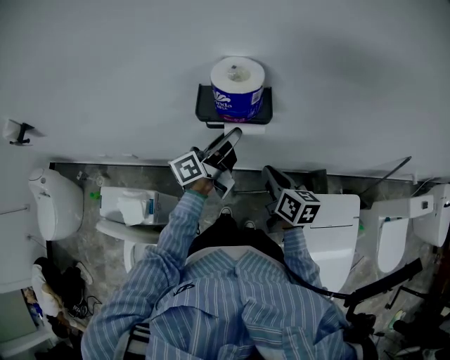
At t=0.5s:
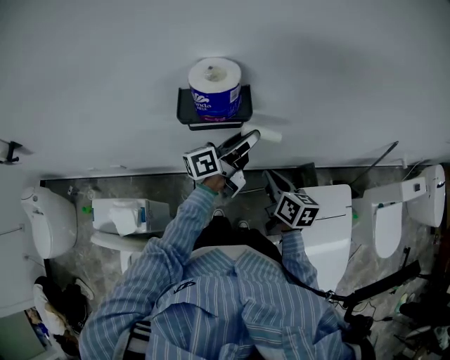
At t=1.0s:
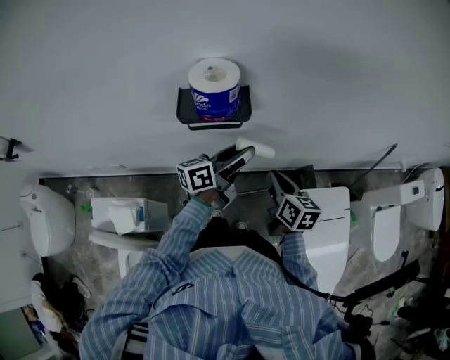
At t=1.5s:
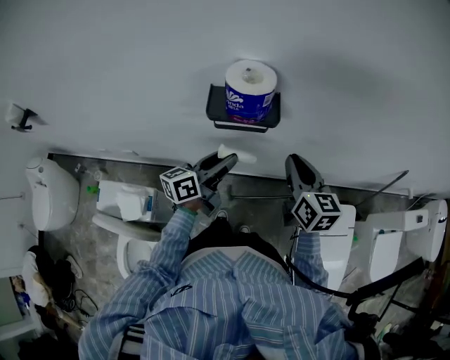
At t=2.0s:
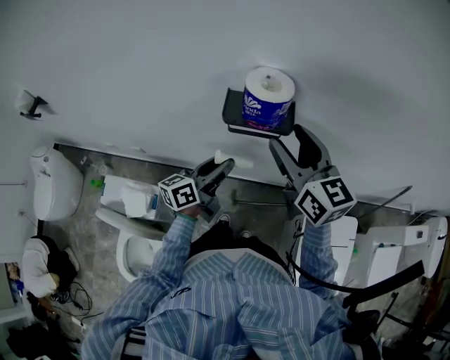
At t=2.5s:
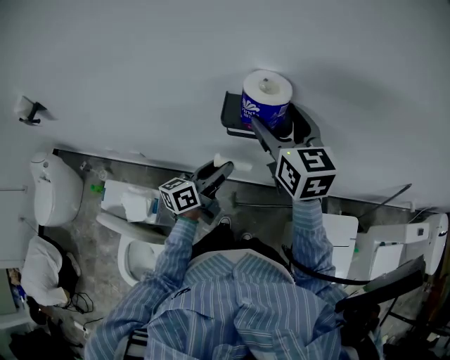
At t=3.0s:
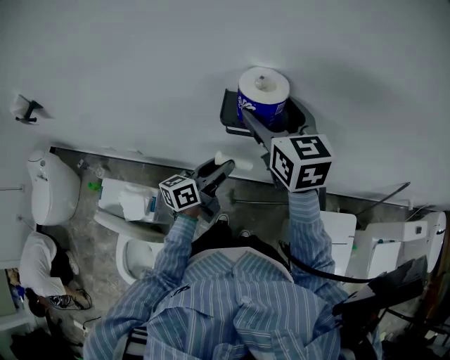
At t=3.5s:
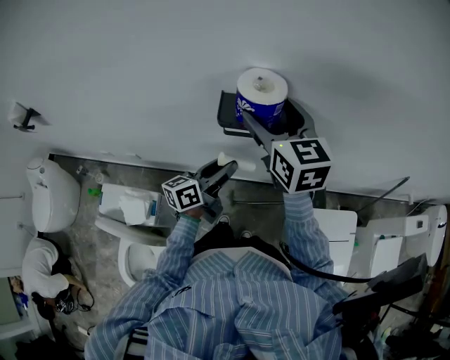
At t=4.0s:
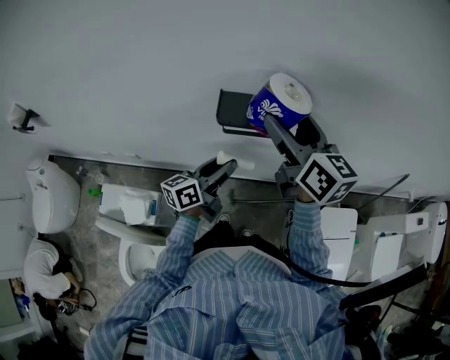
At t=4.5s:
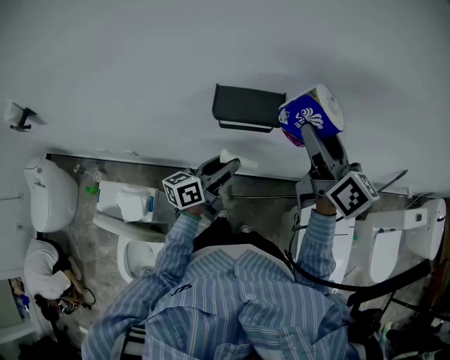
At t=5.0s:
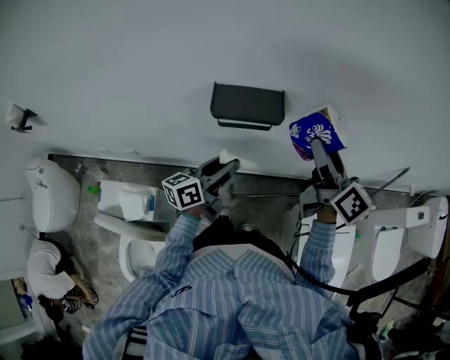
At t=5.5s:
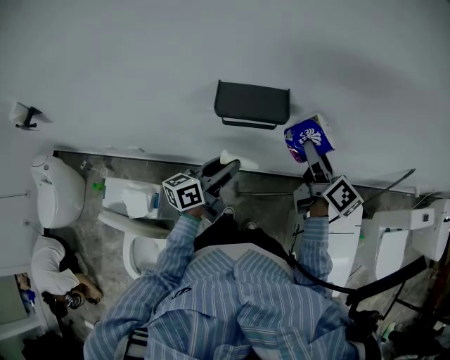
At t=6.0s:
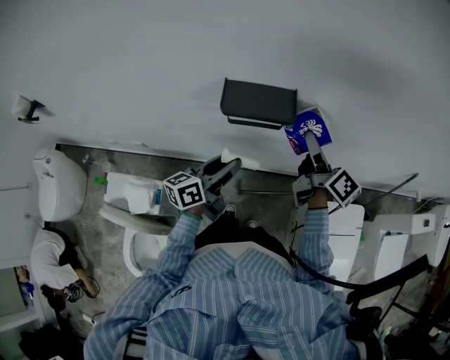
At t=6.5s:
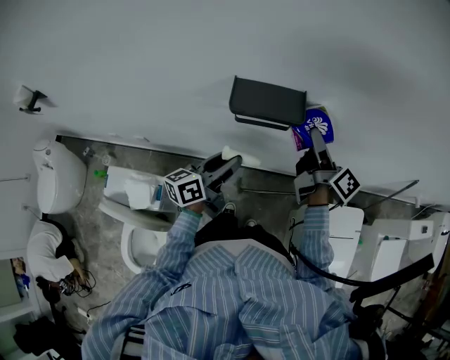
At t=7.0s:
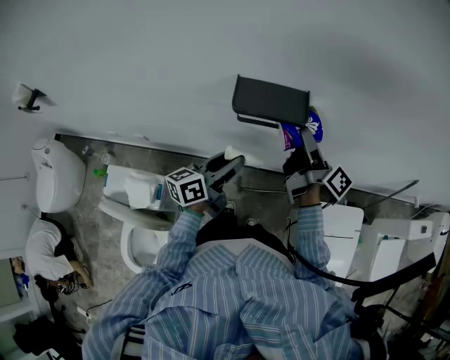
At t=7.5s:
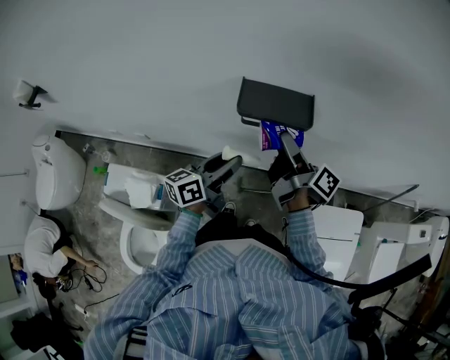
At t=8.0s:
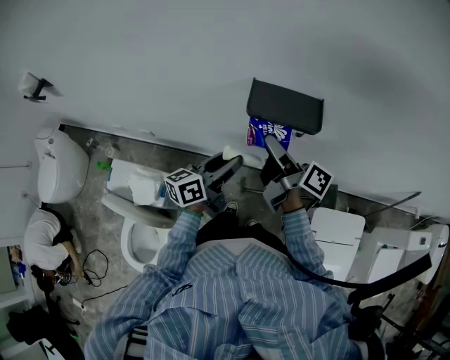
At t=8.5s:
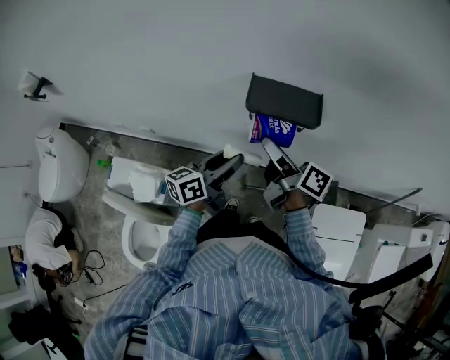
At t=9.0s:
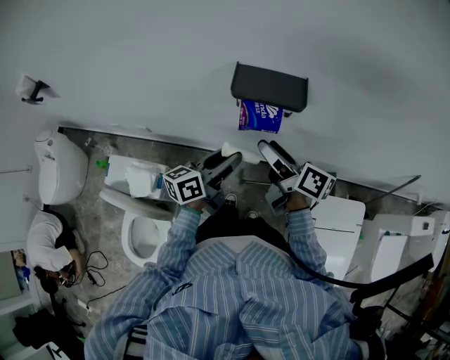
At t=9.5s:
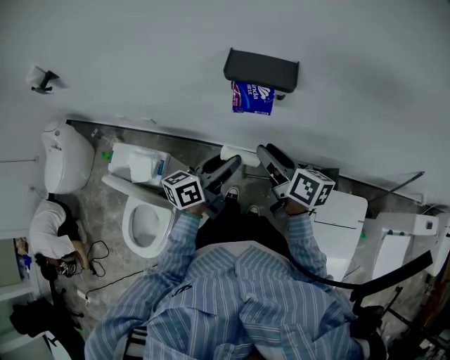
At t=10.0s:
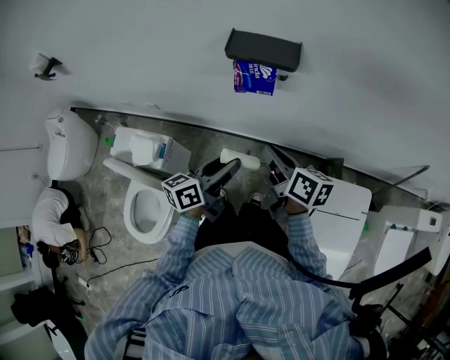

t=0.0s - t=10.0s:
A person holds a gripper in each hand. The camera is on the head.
t=0.0s - t=2.0s: The right gripper moves upward, some 20 cm, turns by approximately 40 degrees, and opens up, while the left gripper travels backward and to the left by some 10 cm, and changes its angle by roughly 20 degrees.
t=4.0s - t=6.0s: The right gripper is displaced downward and to the right by about 15 cm, and turns by about 40 degrees.
t=6.0s - t=8.0s: The right gripper moves to the left, about 15 cm, and swivels about 30 degrees.
t=8.0s - t=10.0s: Both grippers move backward, roughly 15 cm. The right gripper swivels approximately 30 degrees, and closes its fingers.

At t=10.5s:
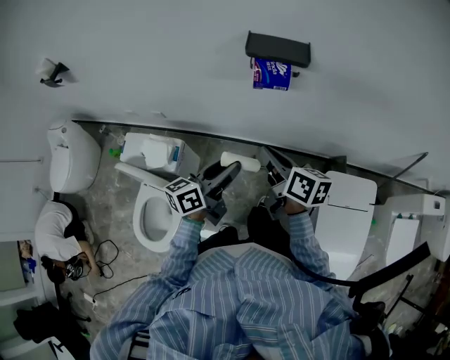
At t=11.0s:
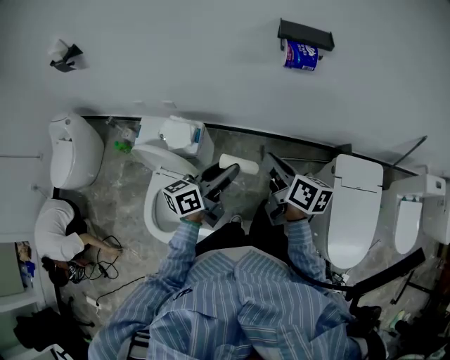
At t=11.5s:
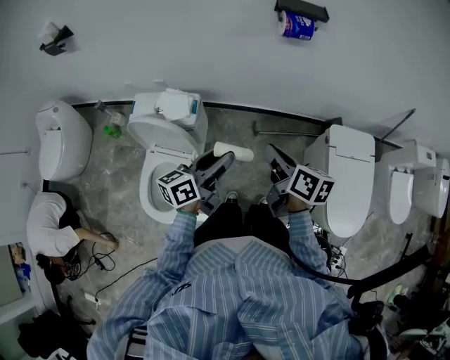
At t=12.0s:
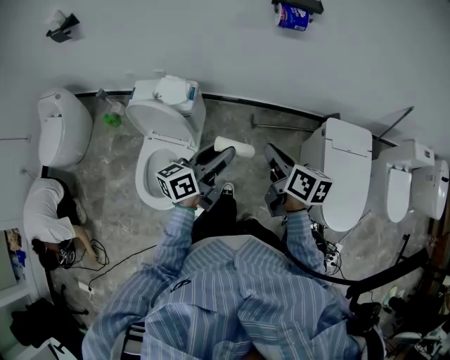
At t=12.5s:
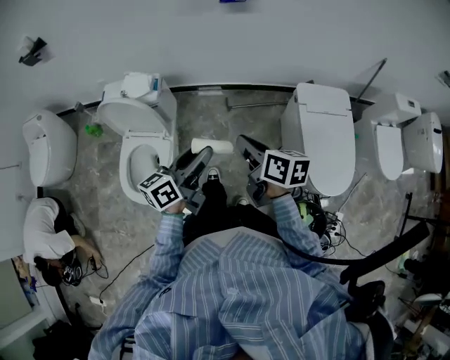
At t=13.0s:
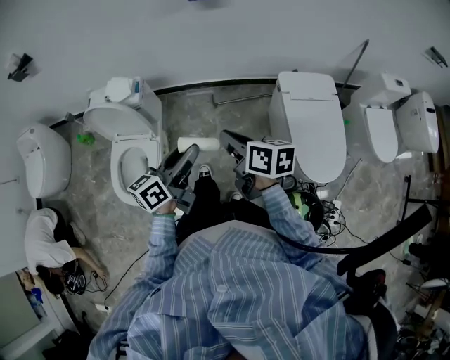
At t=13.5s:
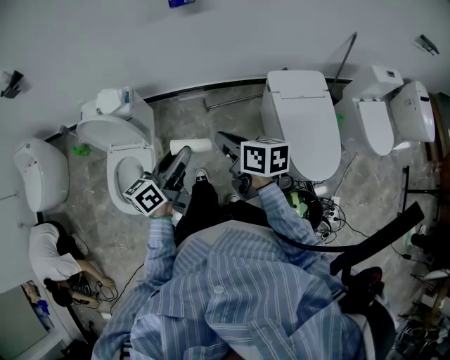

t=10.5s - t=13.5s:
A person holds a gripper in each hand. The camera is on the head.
t=10.5s - t=12.0s: The left gripper heads backward and to the left, covering about 25 cm. Meanwhile the right gripper is displaced backward by roughly 30 cm.
t=12.0s - t=13.5s: Both grippers move to the right and backward, some 15 cm.

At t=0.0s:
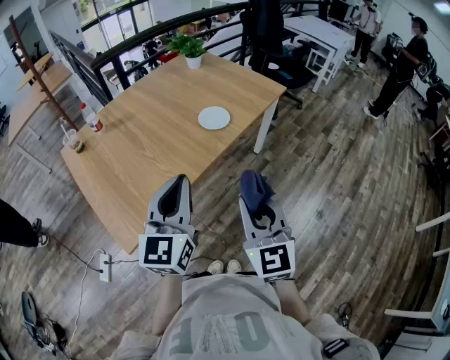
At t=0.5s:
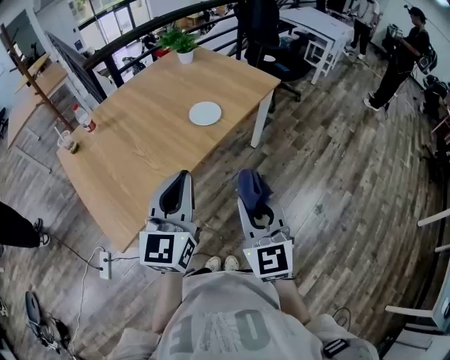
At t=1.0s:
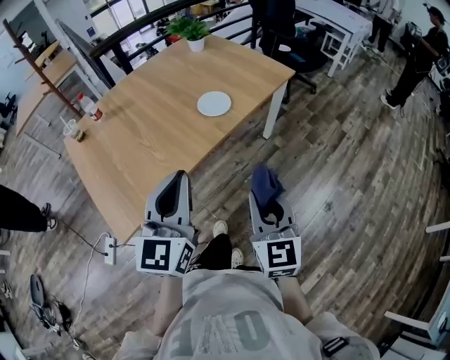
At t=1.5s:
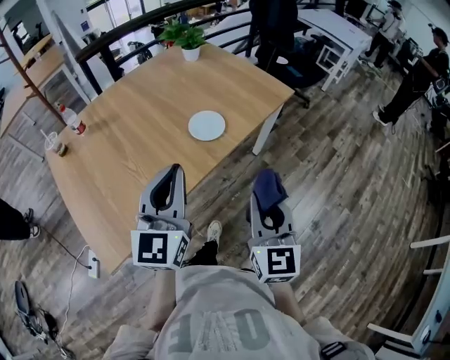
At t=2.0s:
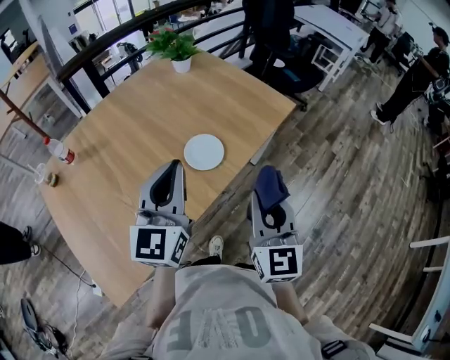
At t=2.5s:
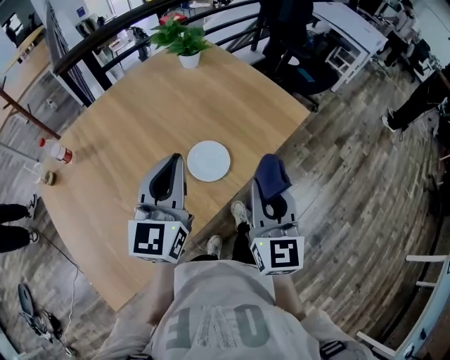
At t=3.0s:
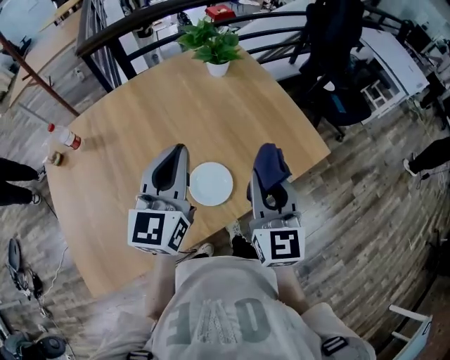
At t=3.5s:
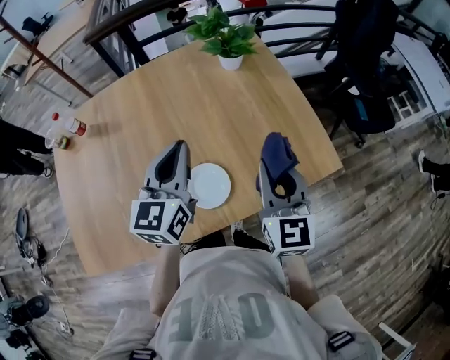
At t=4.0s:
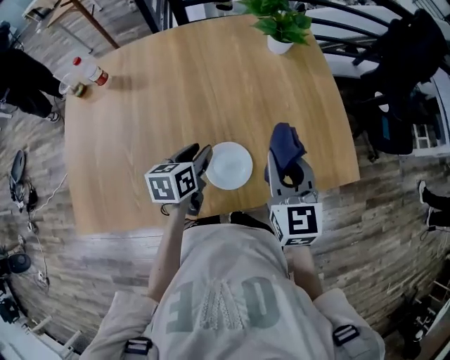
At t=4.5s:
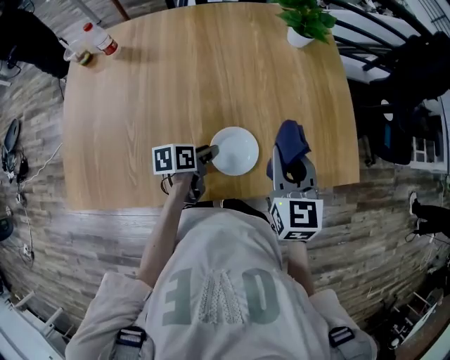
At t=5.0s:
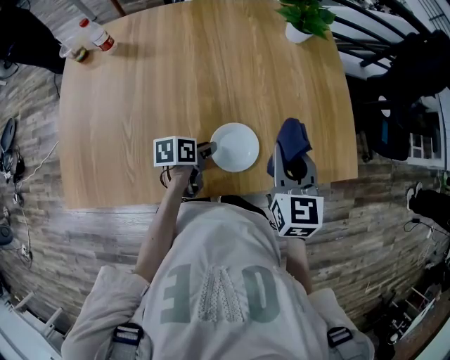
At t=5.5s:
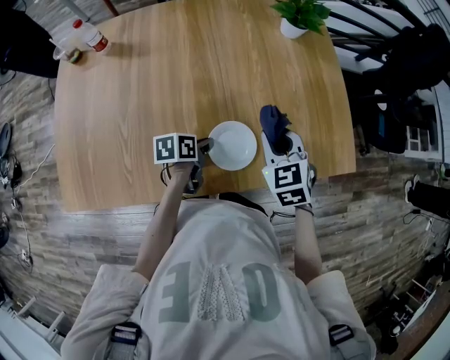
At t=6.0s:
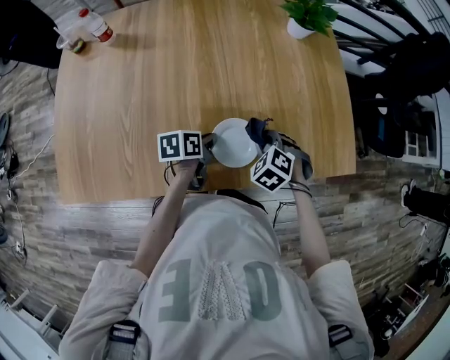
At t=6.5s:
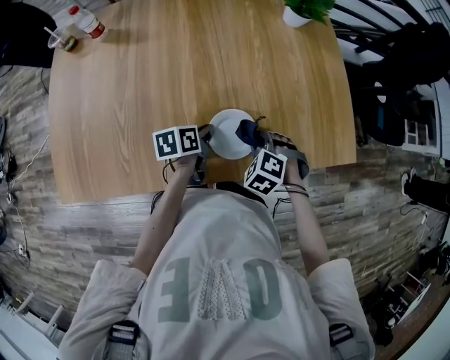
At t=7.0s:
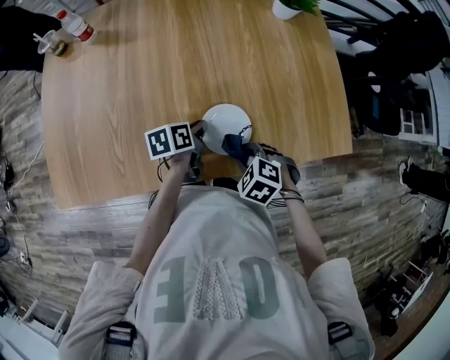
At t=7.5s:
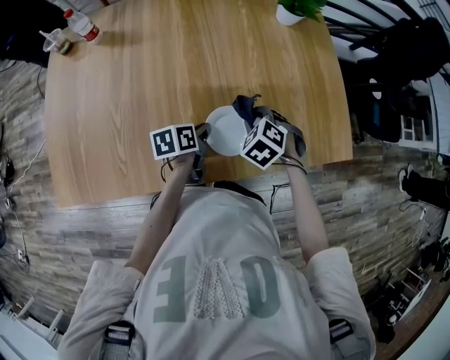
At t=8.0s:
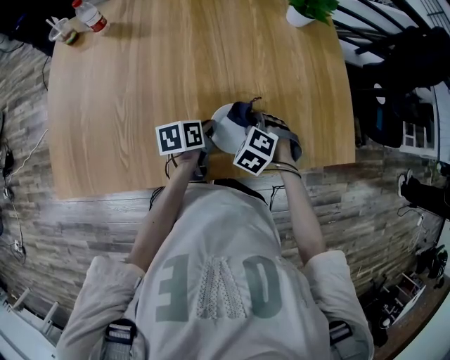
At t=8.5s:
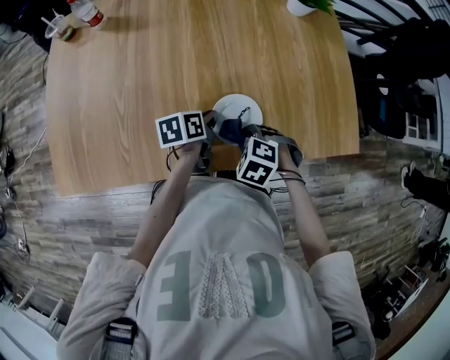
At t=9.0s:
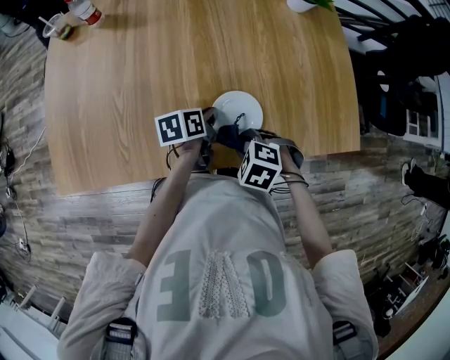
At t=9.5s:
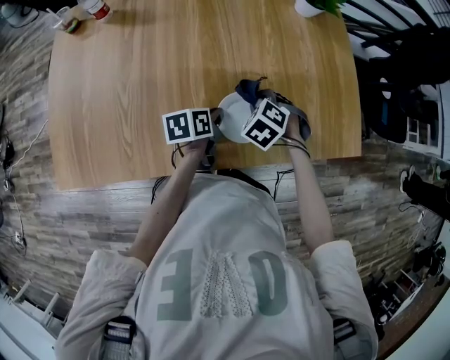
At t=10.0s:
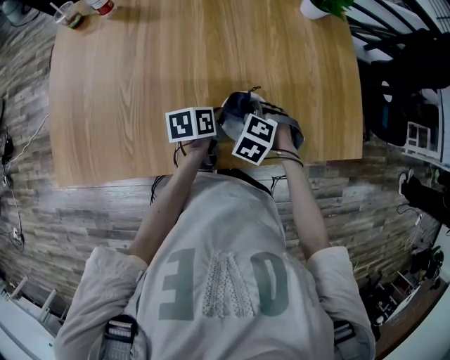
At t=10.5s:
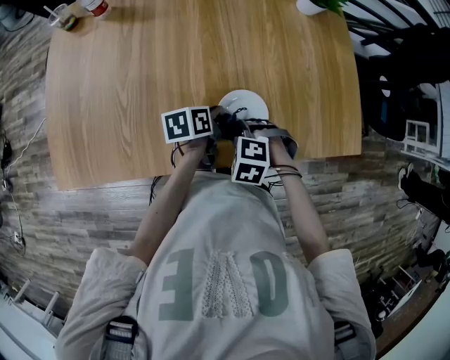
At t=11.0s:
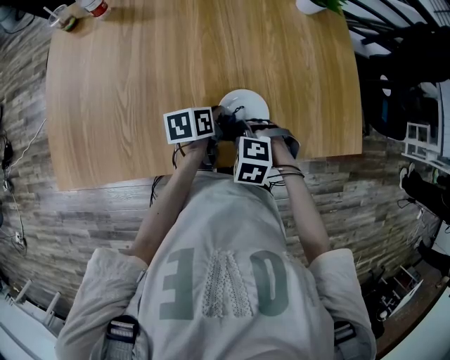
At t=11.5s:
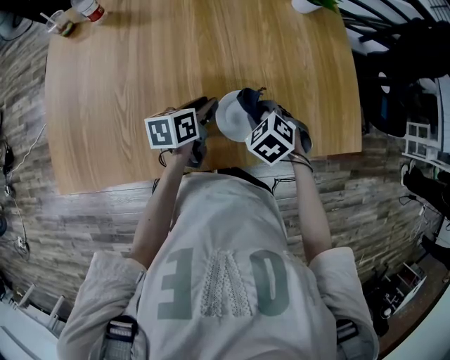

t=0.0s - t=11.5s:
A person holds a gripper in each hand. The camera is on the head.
t=0.0s - t=2.0s: The grippers both shift forward by approximately 30 cm.
t=2.0s - t=4.0s: The left gripper goes about 25 cm downward, points its fingers about 40 degrees further downward, and opens, while the right gripper changes place by about 35 cm, and changes its angle by some 40 degrees.
t=4.0s - t=6.0s: The left gripper moves downward, roughly 10 cm, rotates about 20 degrees, and closes its fingers, while the right gripper travels downward by some 20 cm, and angles its fingers downward, by approximately 50 degrees.
t=6.0s - t=7.5s: The right gripper goes backward and returns, roughly 10 cm each way.
t=9.5s - t=11.5s: The left gripper shifts by roughly 5 cm, and opens up.

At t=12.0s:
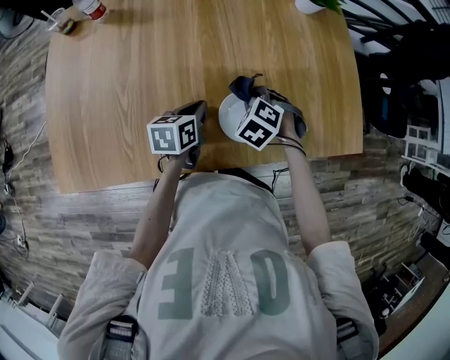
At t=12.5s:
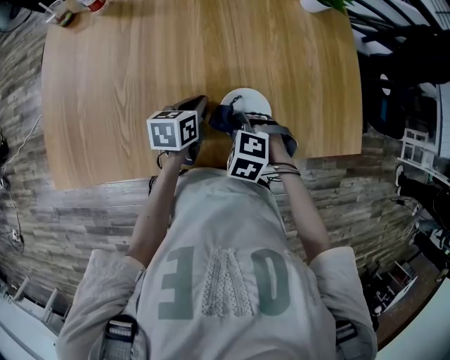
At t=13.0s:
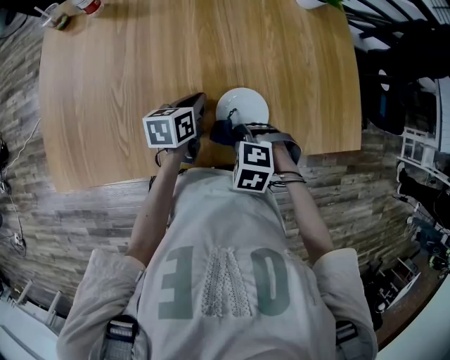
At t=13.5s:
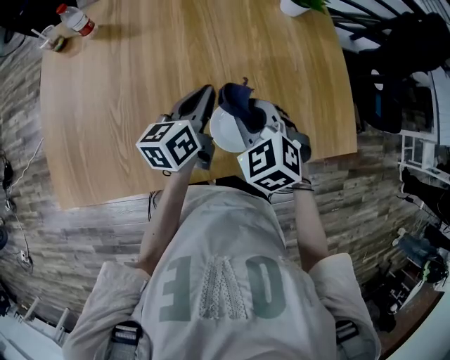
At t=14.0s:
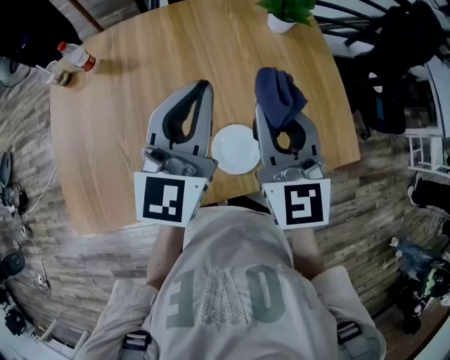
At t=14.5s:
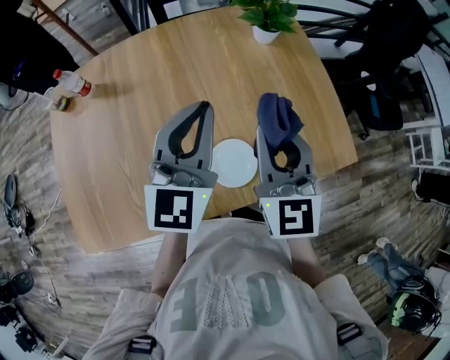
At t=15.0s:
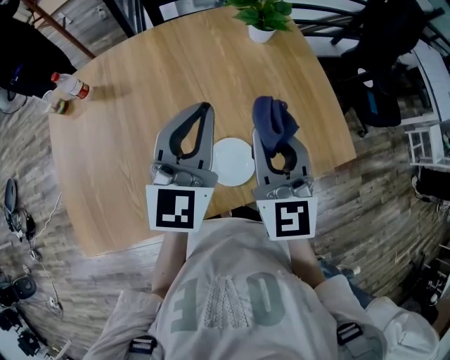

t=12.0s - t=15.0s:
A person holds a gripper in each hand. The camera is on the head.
t=12.0s - t=13.5s: Both grippers move upward, about 15 cm. The left gripper turns by some 30 degrees. Meanwhile the right gripper rotates approximately 30 degrees.
t=13.5s - t=15.0s: The left gripper shifts roughly 15 cm upward, and twists some 50 degrees clockwise, seen from behind. Meanwhile the right gripper moves upward and to the right, about 15 cm, and tilts its fingers approximately 40 degrees upward.
